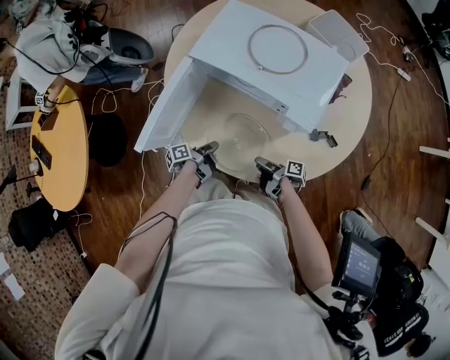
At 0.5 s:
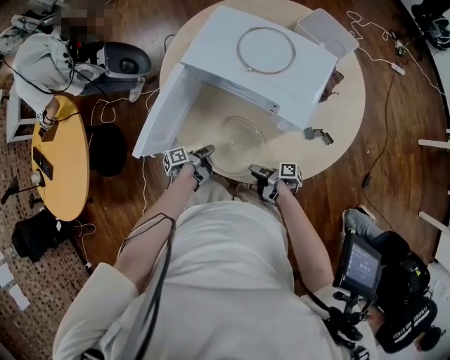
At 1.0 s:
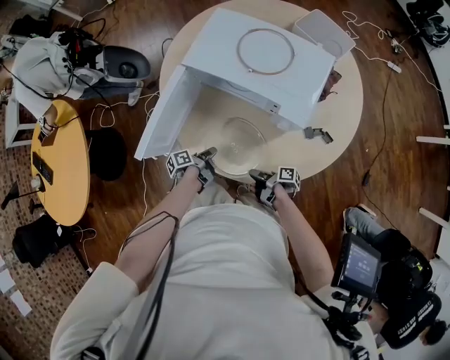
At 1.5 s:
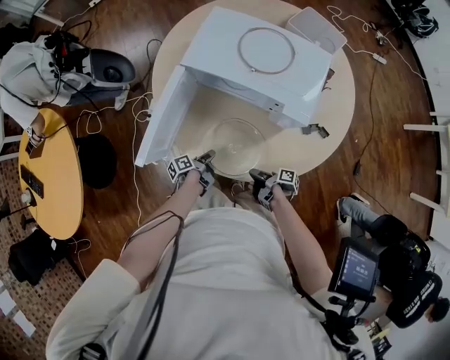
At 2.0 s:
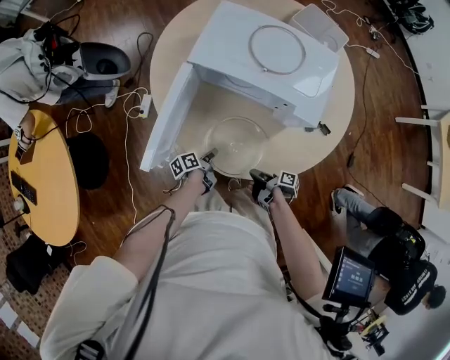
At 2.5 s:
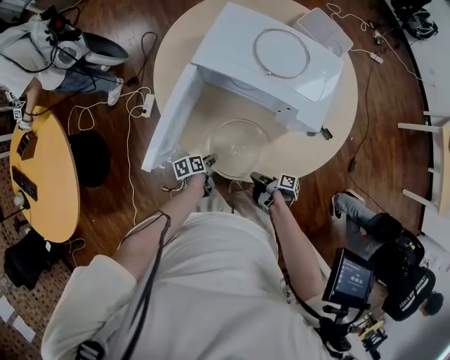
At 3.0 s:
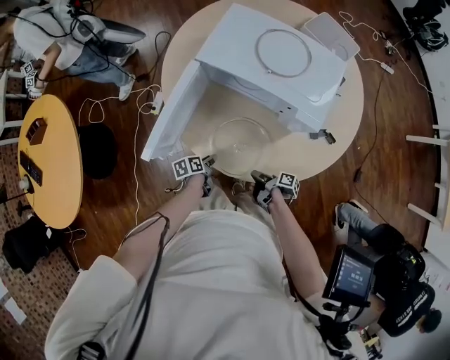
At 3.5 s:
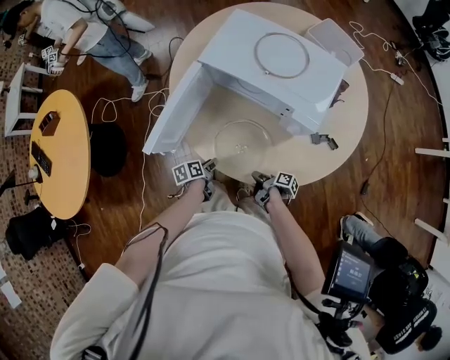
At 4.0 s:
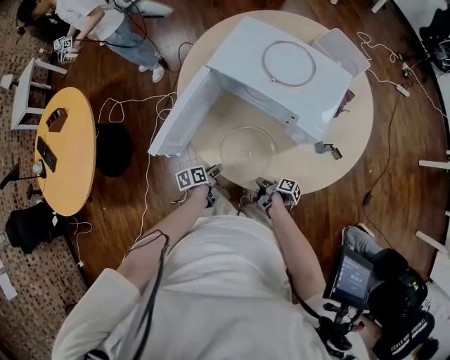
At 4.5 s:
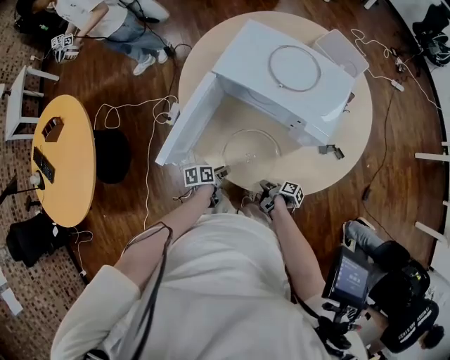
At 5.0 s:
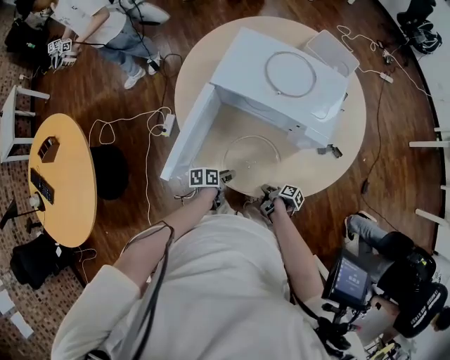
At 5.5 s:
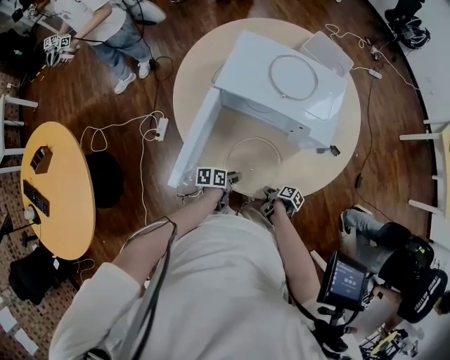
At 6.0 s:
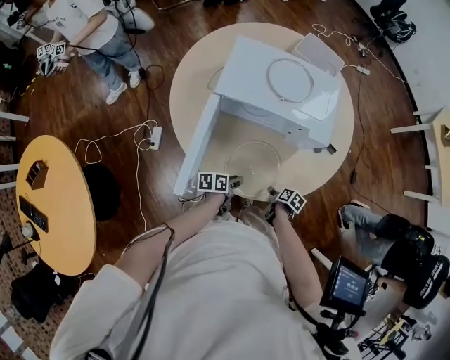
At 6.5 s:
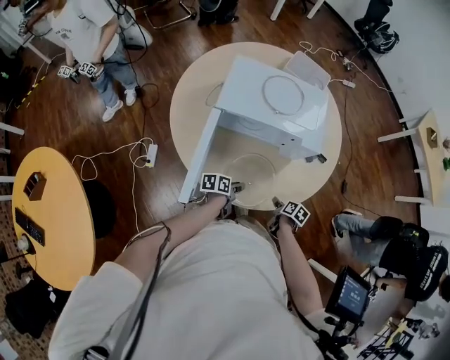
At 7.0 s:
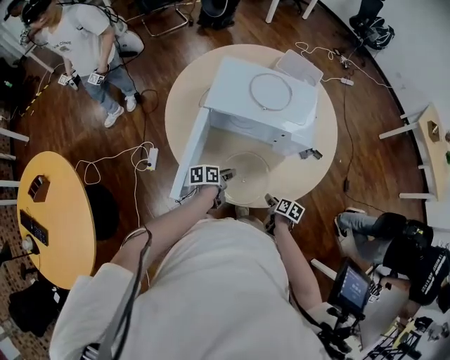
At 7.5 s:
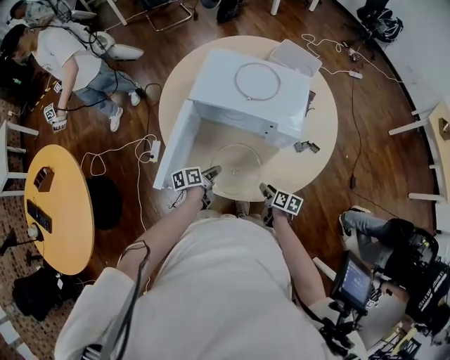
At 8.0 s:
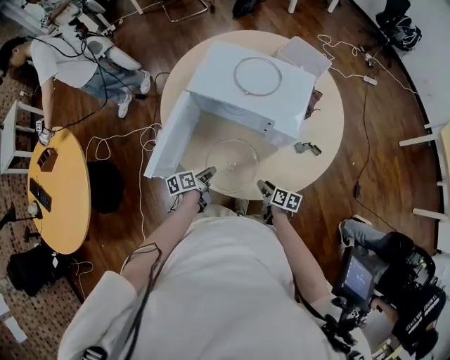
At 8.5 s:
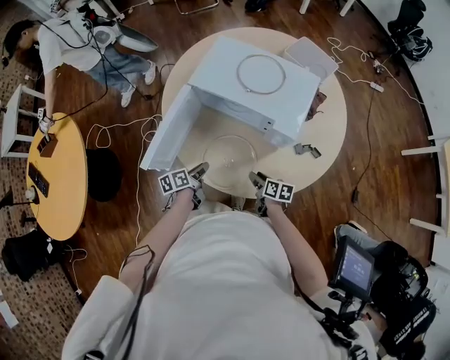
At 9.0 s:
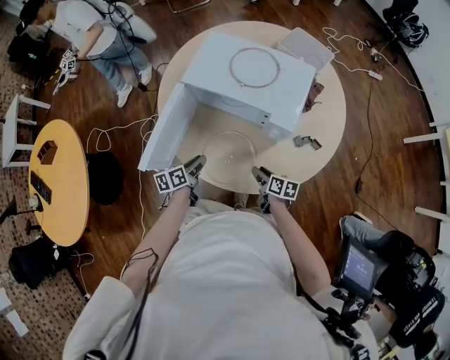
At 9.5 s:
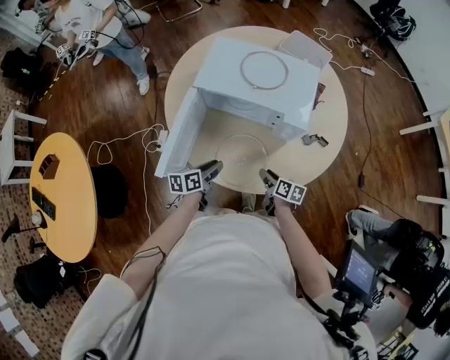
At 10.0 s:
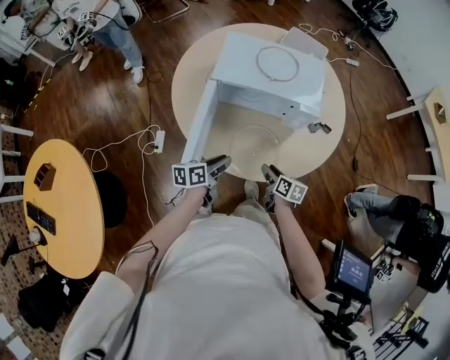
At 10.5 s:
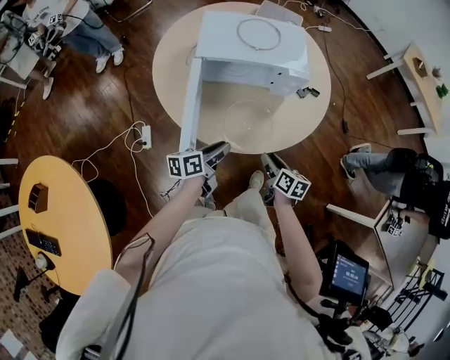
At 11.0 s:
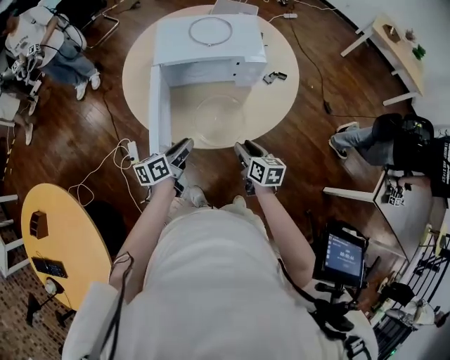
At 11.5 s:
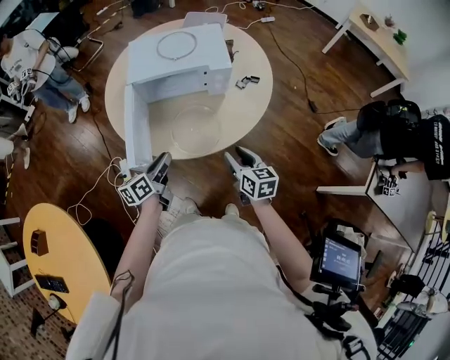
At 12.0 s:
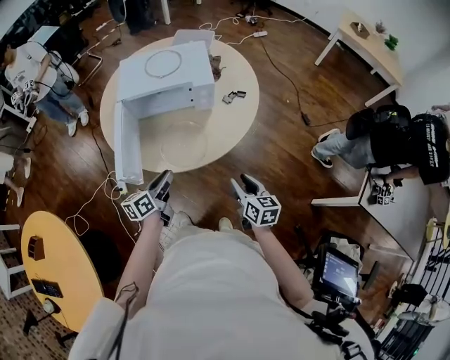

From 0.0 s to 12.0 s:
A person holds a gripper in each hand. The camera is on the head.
From 0.0 s to 2.0 s: The right gripper shifts by roughly 5 cm, and closes. Meanwhile the left gripper moves about 5 cm.
From 2.0 s to 4.0 s: The left gripper heads backward, covering roughly 5 cm.
From 4.0 s to 6.0 s: The right gripper changes its angle by approximately 40 degrees, and opens its fingers, while the left gripper ends up about 5 cm from where it was, and rotates about 40 degrees.
From 6.0 s to 8.0 s: Both grippers travel together upward, approximately 5 cm. The right gripper rotates roughly 30 degrees, while the left gripper turns by some 30 degrees.
From 8.0 s to 10.0 s: The right gripper ends up roughly 15 cm from where it was, while the left gripper heads upward, covering some 10 cm, and turns by approximately 30 degrees.
From 10.0 s to 12.0 s: The right gripper travels to the right, backward and upward by some 30 cm, and rotates some 20 degrees. The left gripper is displaced to the right, backward and upward by about 15 cm.

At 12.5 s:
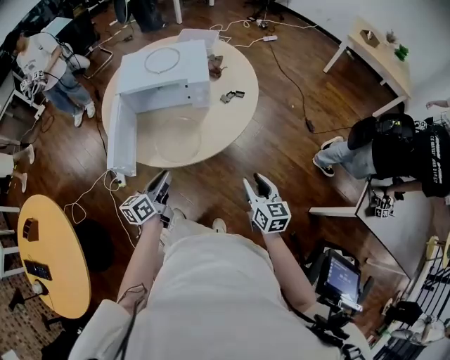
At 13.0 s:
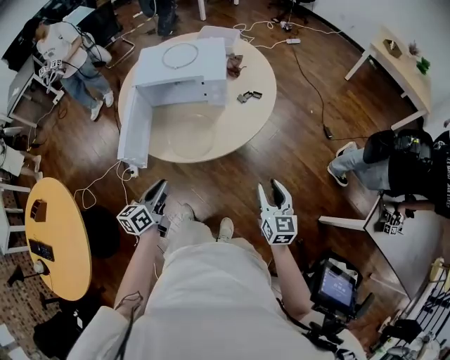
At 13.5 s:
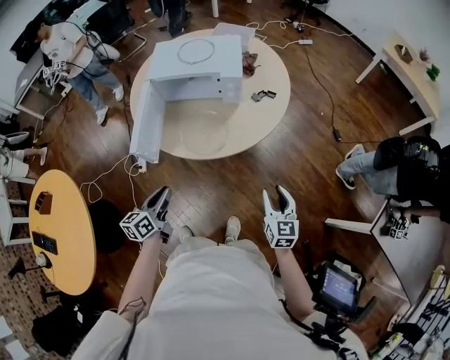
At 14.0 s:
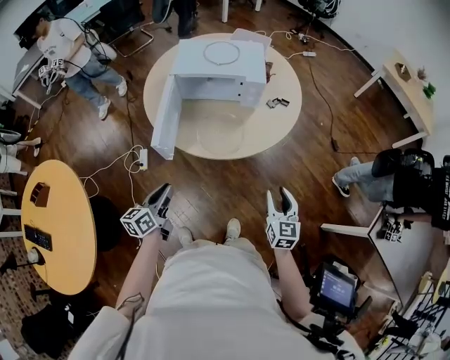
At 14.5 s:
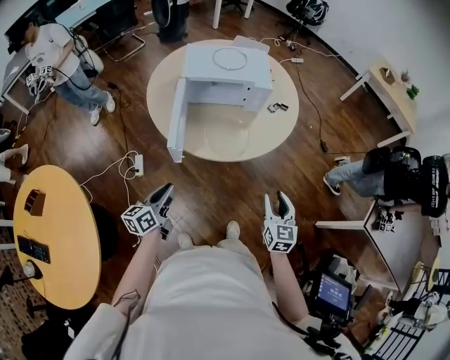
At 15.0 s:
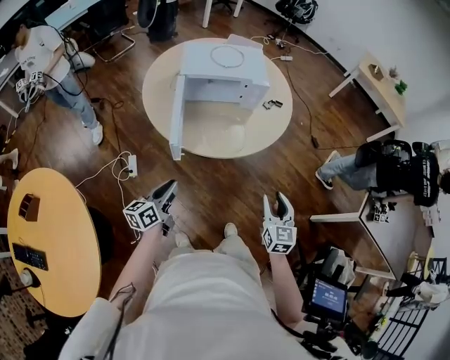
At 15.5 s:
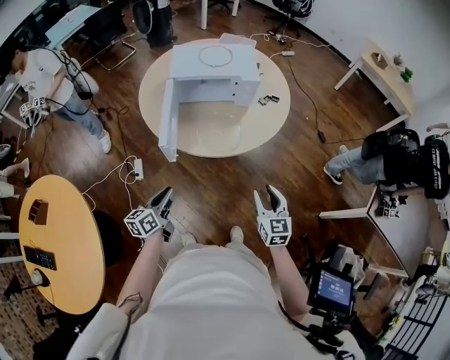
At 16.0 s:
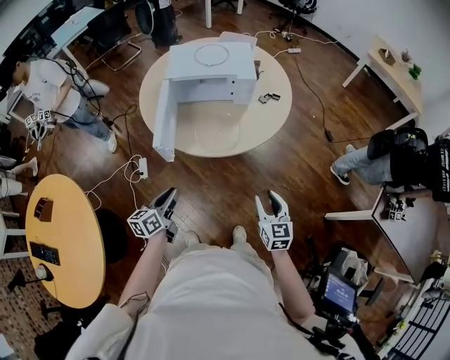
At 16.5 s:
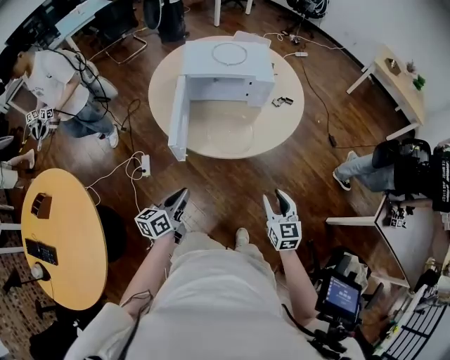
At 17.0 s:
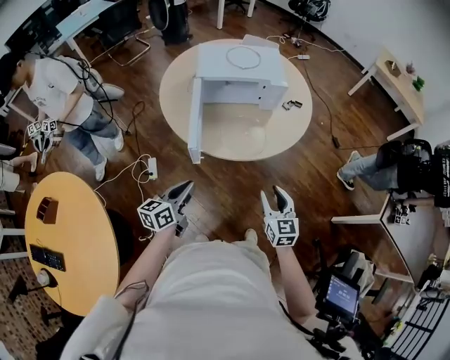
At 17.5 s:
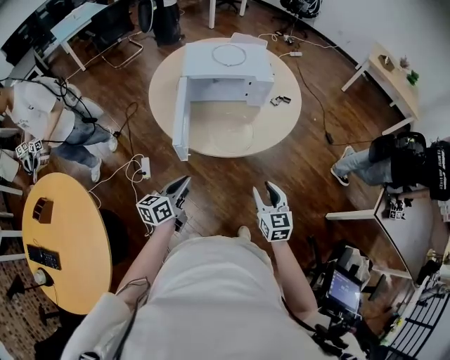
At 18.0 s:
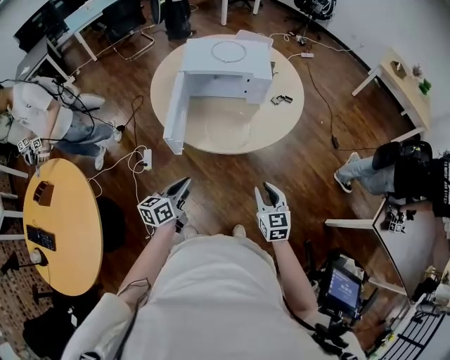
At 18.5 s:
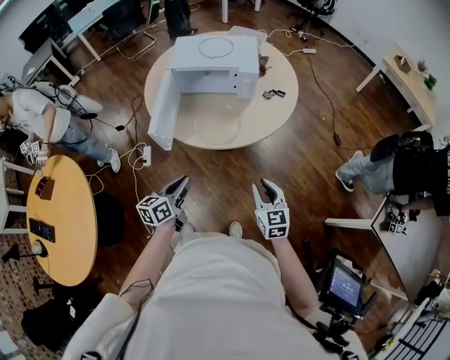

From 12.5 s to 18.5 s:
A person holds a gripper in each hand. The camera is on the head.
From 12.5 s to 14.5 s: The grippers both shift to the left and backward by approximately 25 cm. The right gripper rotates some 20 degrees.
From 14.5 s to 16.5 s: The left gripper shifts by approximately 5 cm.
From 16.5 s to 18.5 s: The left gripper travels to the right by some 10 cm. The right gripper shifts approximately 10 cm to the right.

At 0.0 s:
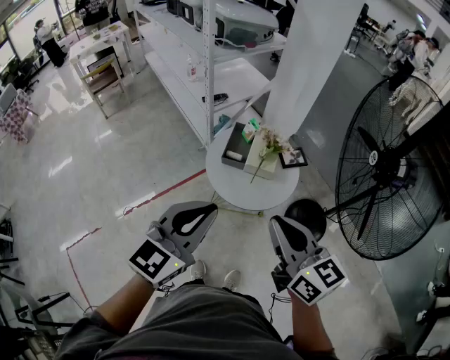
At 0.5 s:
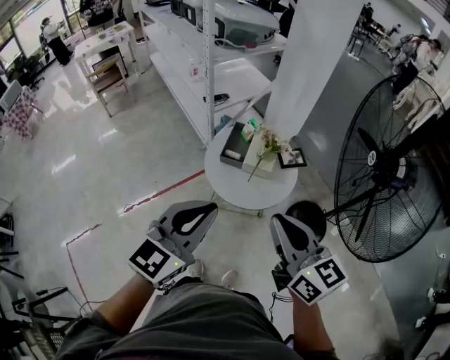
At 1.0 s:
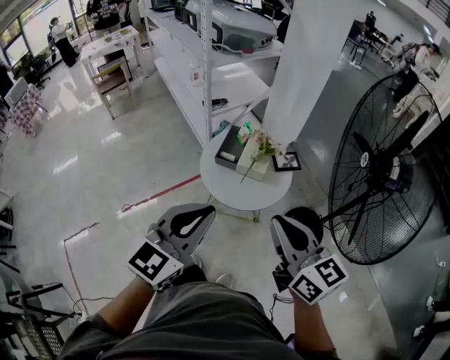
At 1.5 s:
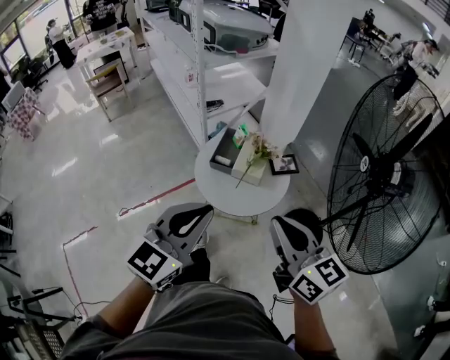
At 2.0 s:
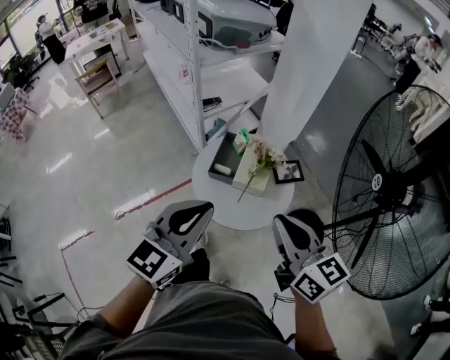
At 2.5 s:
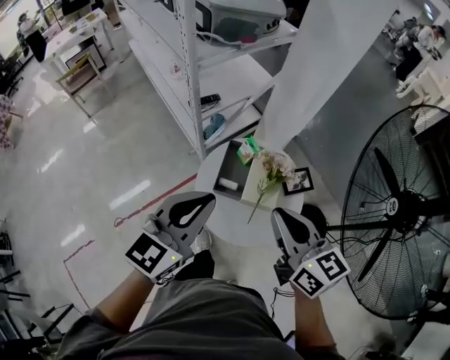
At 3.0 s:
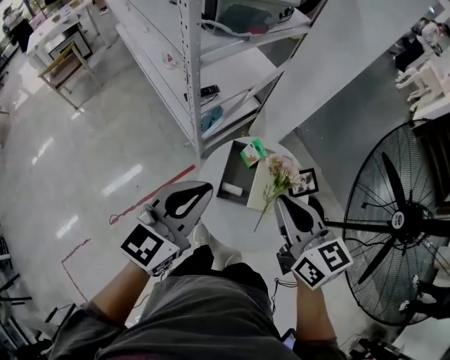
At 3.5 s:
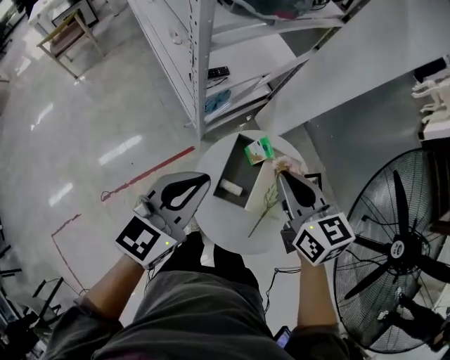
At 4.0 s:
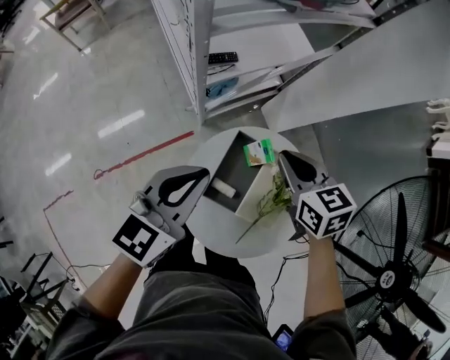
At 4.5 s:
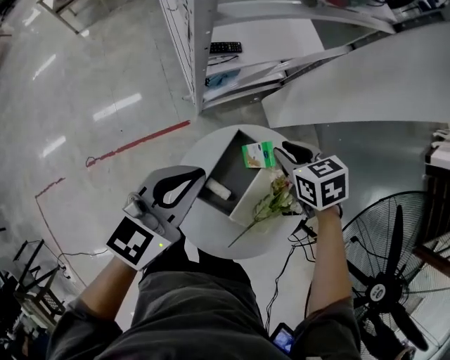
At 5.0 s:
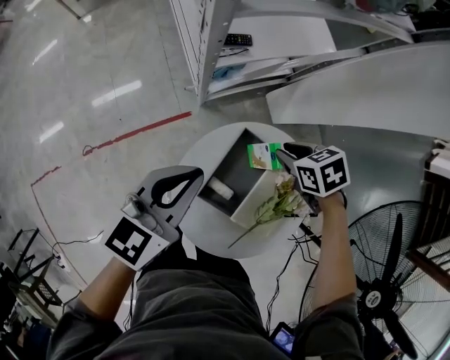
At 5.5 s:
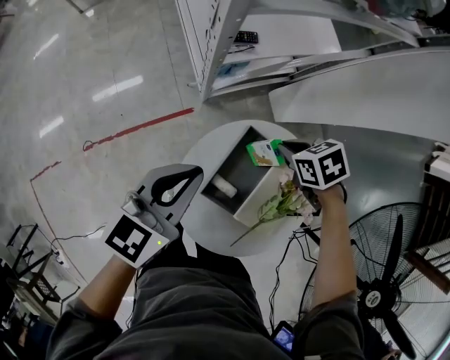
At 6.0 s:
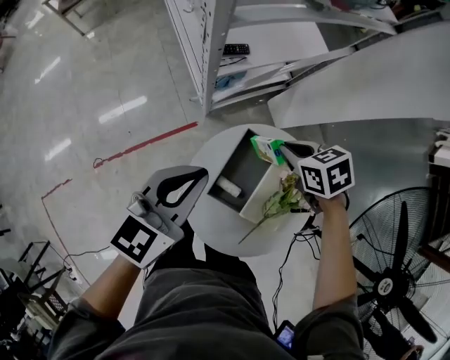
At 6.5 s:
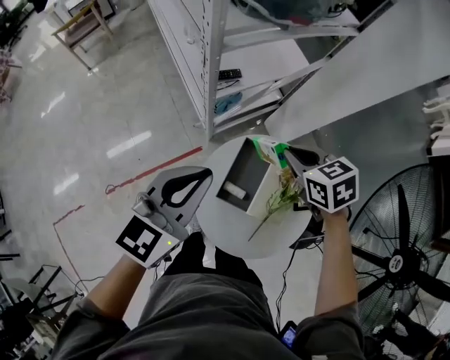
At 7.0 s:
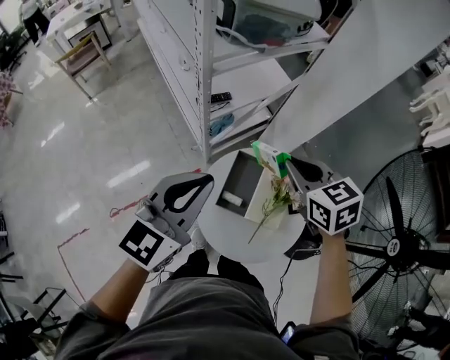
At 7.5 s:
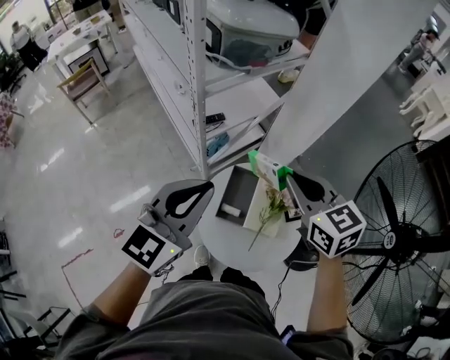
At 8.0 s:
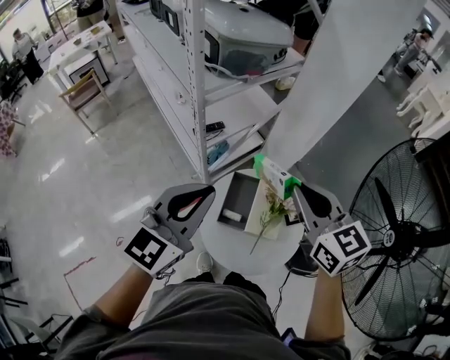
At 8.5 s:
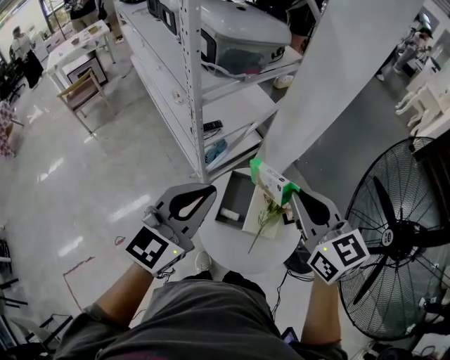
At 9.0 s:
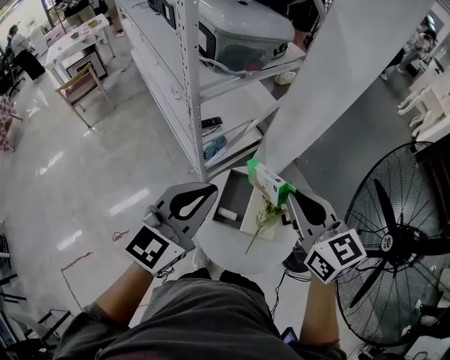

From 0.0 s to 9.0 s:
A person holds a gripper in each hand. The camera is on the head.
From 0.0 s to 2.0 s: Both grippers travel together forward and to the right, some 15 cm.
From 2.0 s to 4.5 s: Both grippers move forward and downward, approximately 50 cm. The left gripper swivels about 30 degrees; the right gripper tilts its fingers about 50 degrees downward.
From 4.5 s to 7.0 s: The two grippers go approximately 20 cm upward. The right gripper turns by about 30 degrees.
From 7.0 s to 9.0 s: The left gripper moves some 5 cm. The right gripper shifts roughly 15 cm upward and backward, and changes its angle by some 20 degrees.
